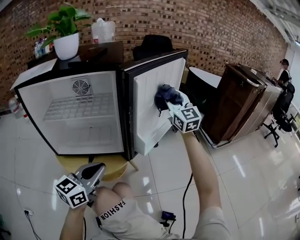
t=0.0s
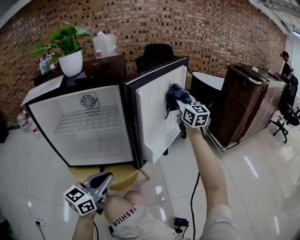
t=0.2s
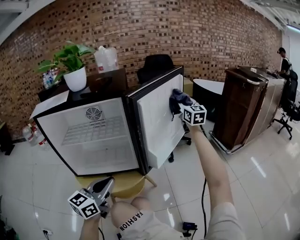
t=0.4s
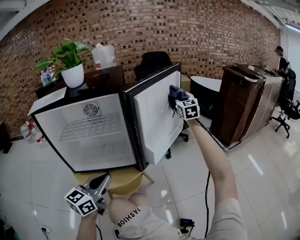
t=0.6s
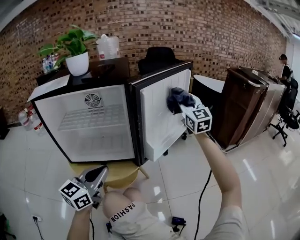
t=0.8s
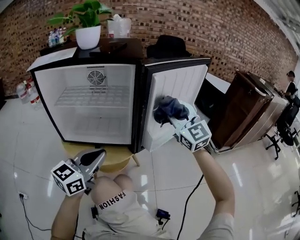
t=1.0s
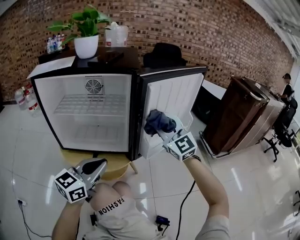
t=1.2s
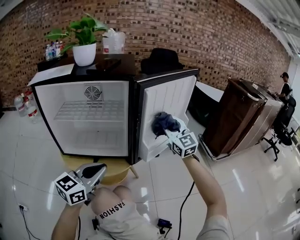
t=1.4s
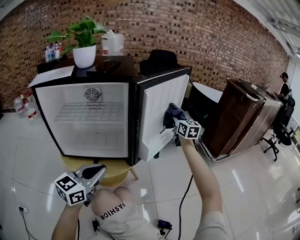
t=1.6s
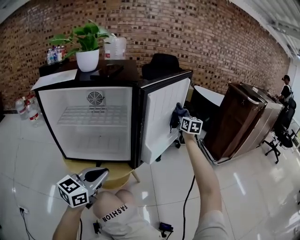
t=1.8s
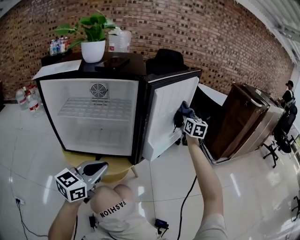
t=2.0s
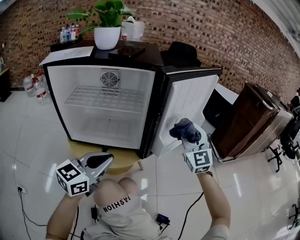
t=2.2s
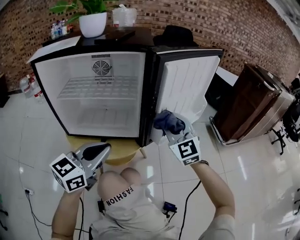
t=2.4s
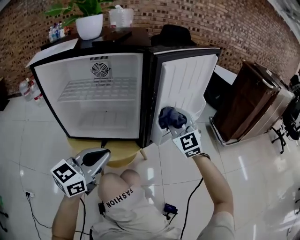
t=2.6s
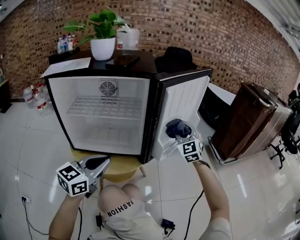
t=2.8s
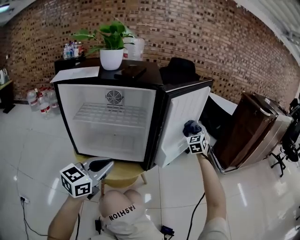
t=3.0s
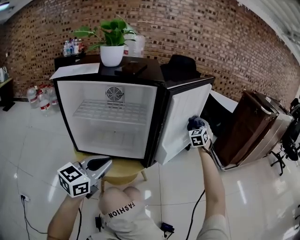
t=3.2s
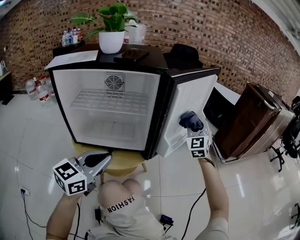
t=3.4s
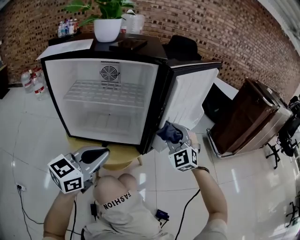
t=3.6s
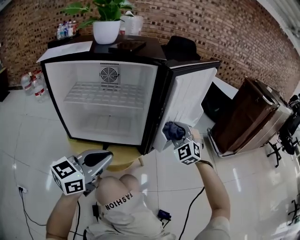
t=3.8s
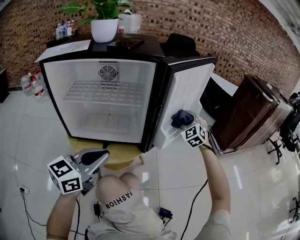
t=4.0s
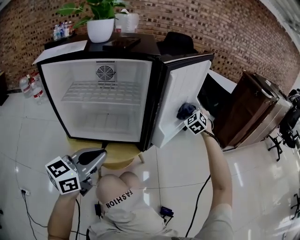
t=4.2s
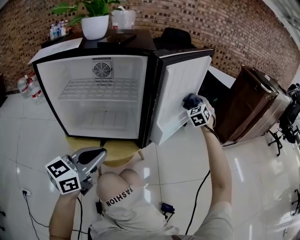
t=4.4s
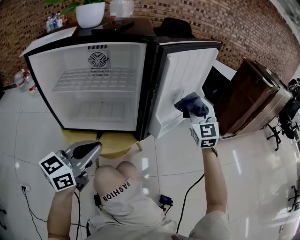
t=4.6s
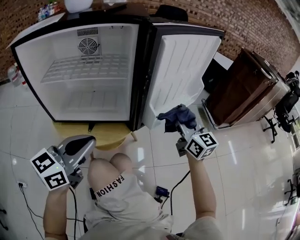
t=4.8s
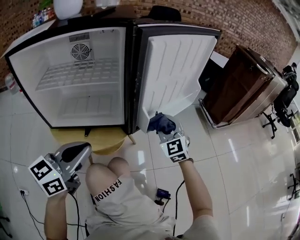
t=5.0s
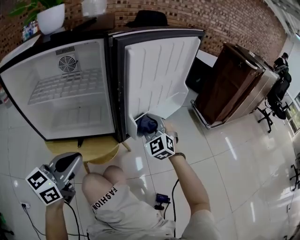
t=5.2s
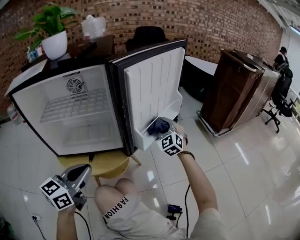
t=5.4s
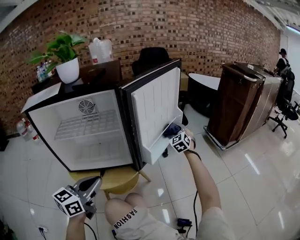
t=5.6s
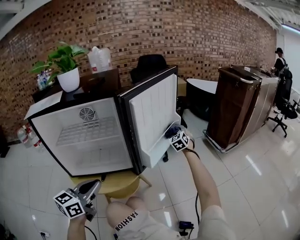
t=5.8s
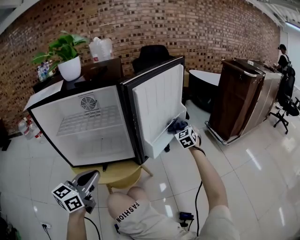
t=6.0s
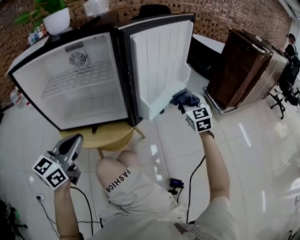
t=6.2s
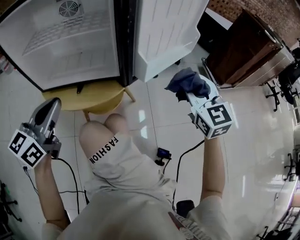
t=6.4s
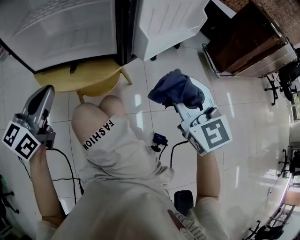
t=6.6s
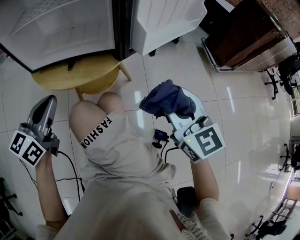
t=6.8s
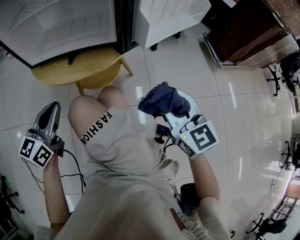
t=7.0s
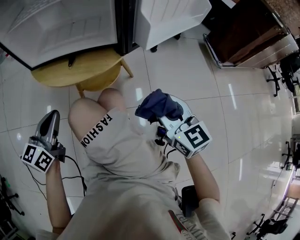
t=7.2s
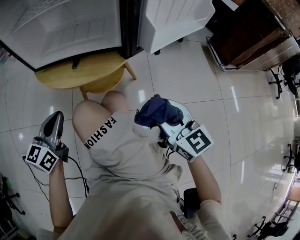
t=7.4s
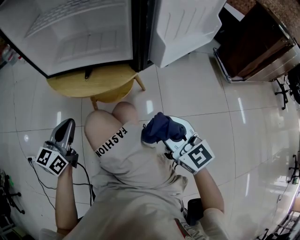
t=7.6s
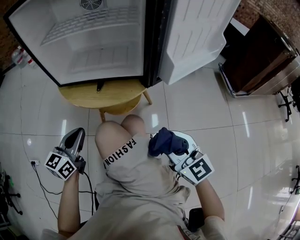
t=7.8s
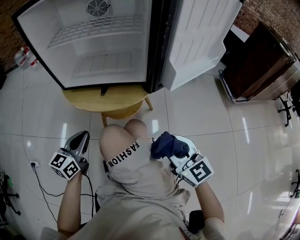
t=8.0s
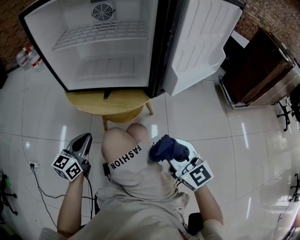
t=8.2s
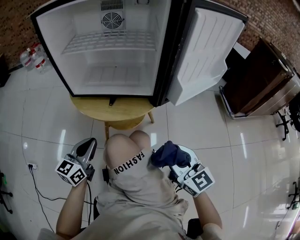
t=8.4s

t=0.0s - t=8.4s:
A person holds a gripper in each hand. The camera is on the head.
t=0.0s - t=1.4s: The right gripper goes forward and backward, approximately 20 cm each way, reversing 2 times.
t=1.4s - t=2.8s: The right gripper moves forward and backward over approximately 25 cm, changing direction 2 times, and changes its angle by approximately 30 degrees.
t=2.8s - t=4.2s: The right gripper goes forward and backward, about 25 cm each way, reversing 2 times, and swivels about 30 degrees.
t=4.2s - t=5.6s: The right gripper heads downward, covering about 5 cm, reaches about 20 cm backward, then returns, and turns by approximately 20 degrees.
t=5.6s - t=7.0s: The right gripper moves backward, about 40 cm, and turns by some 40 degrees; the left gripper goes about 15 cm downward, to the left and backward.
t=7.0s - t=8.4s: The right gripper goes about 5 cm to the left.

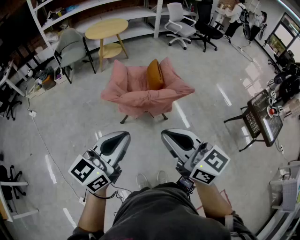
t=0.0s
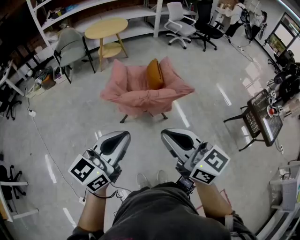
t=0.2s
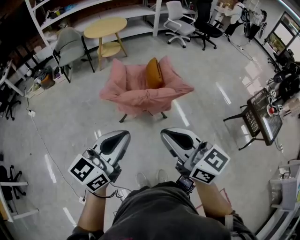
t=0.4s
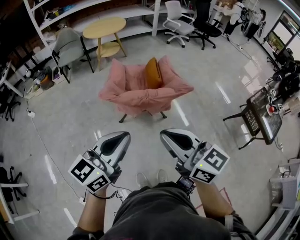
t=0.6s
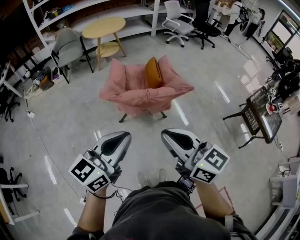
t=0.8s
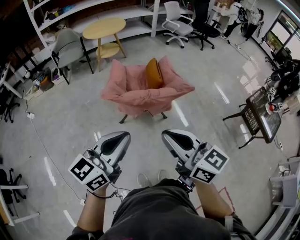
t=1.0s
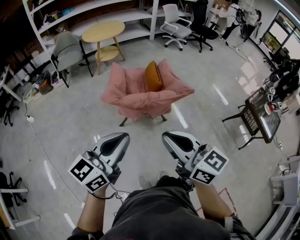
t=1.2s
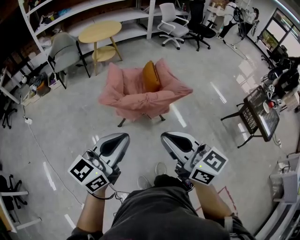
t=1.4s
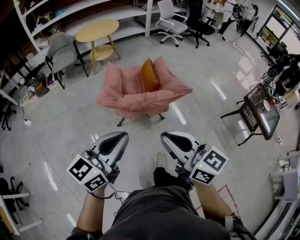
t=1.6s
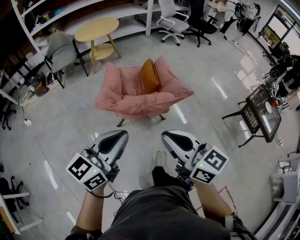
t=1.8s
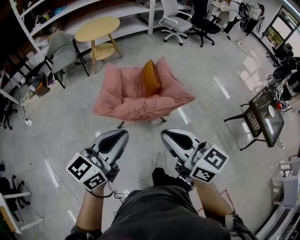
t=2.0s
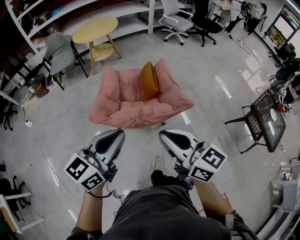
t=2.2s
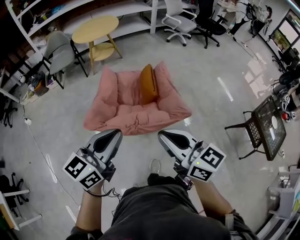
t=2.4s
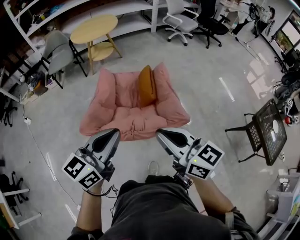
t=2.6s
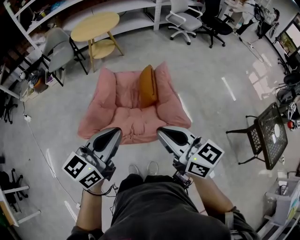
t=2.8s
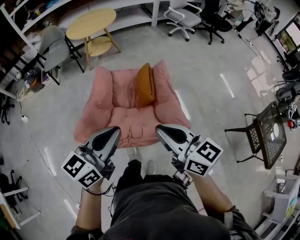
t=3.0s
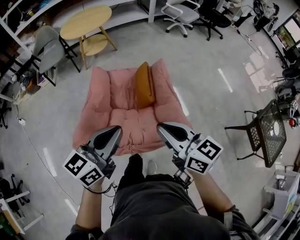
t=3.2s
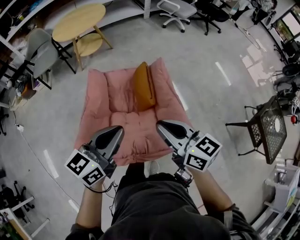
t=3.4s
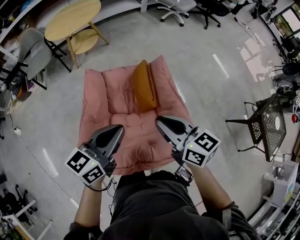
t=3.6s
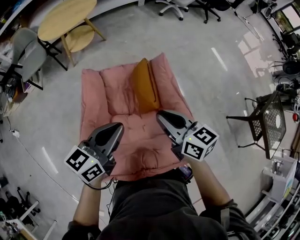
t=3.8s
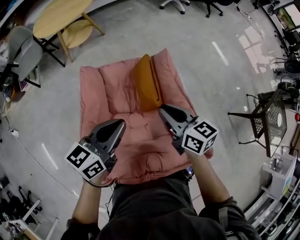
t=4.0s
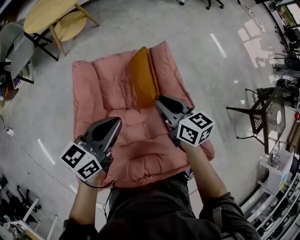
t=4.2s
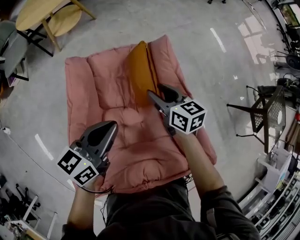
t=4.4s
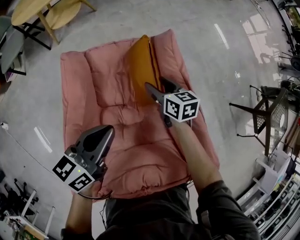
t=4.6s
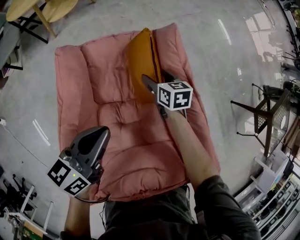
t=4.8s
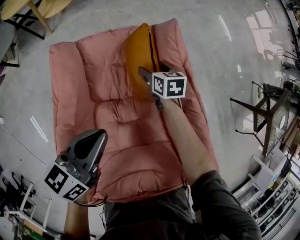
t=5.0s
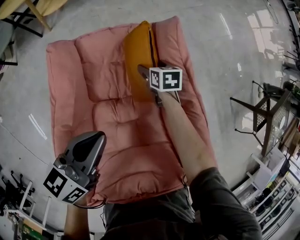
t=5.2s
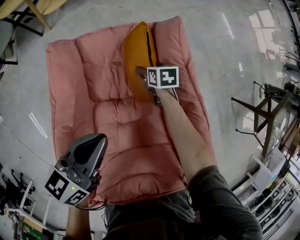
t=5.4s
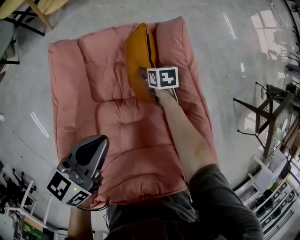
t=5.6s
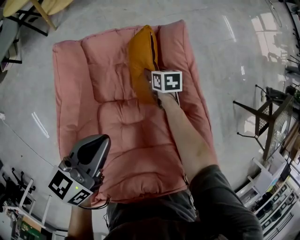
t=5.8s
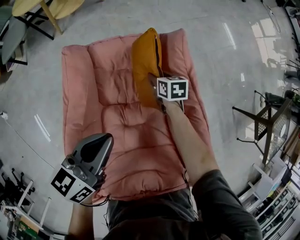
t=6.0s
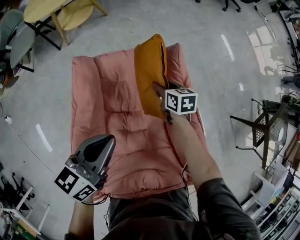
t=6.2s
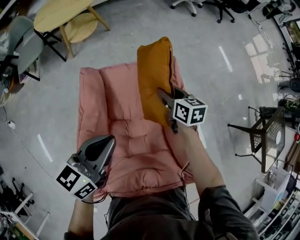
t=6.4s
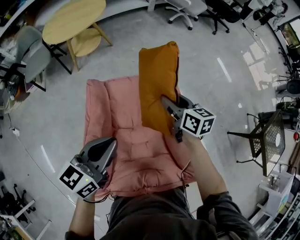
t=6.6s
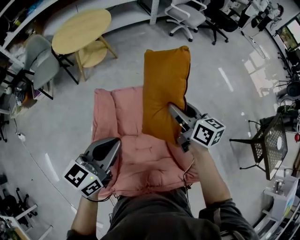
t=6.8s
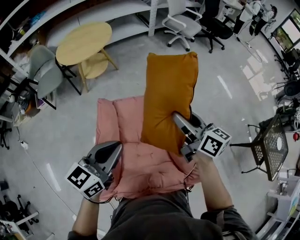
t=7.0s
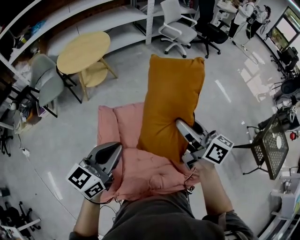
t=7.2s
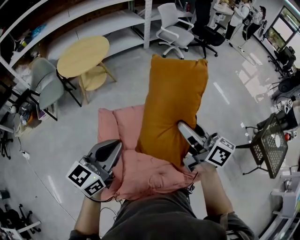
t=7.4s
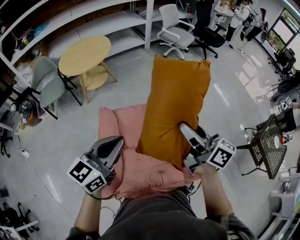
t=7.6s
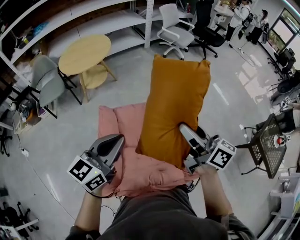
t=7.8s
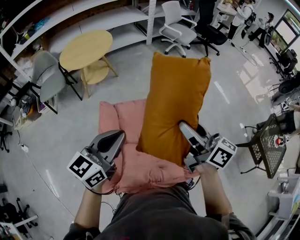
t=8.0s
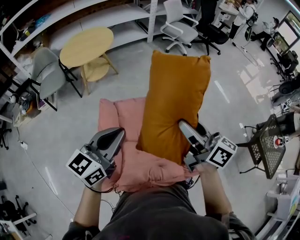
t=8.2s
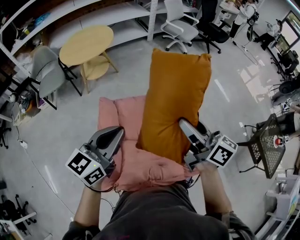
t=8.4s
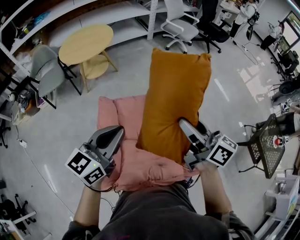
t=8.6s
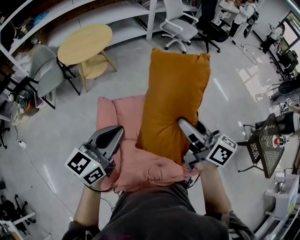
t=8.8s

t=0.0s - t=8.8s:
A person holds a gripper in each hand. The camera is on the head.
t=0.0s - t=1.4s: The grippers stay close to where they were, moving slightly.
t=1.4s - t=3.0s: Both grippers travel together forward, approximately 35 cm.
t=3.0s - t=4.4s: Both grippers move forward and downward, approximately 40 cm. The right gripper swivels about 30 degrees, and opens its fingers. The left gripper changes its angle by some 20 degrees.
t=4.4s - t=5.8s: The right gripper is displaced downward by approximately 25 cm, rotates approximately 30 degrees, and opens and closes again, while the left gripper is displaced downward by some 5 cm.
t=5.8s - t=7.4s: The left gripper moves upward, roughly 30 cm, and changes its angle by some 30 degrees. The right gripper travels upward by approximately 60 cm, and tilts its fingers about 60 degrees upward.
t=7.4s - t=8.8s: There are only small adjustments of the grippers.

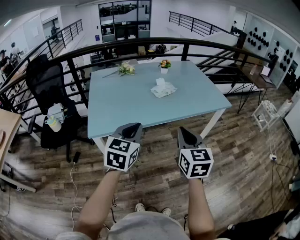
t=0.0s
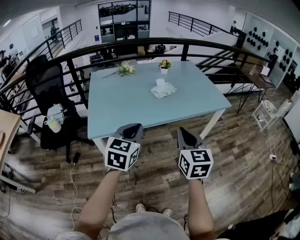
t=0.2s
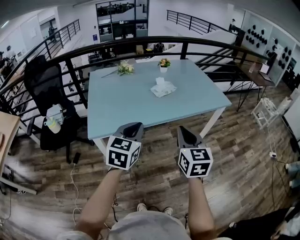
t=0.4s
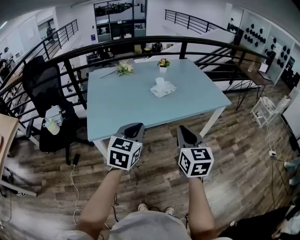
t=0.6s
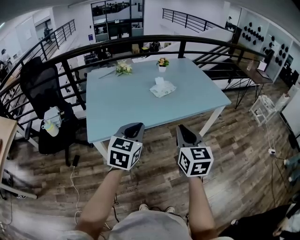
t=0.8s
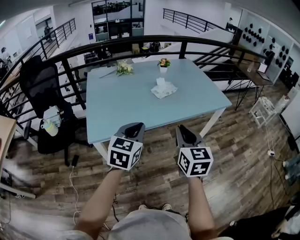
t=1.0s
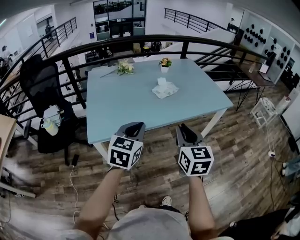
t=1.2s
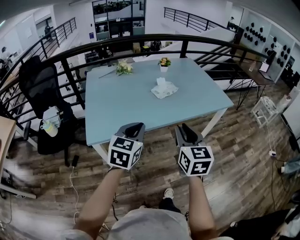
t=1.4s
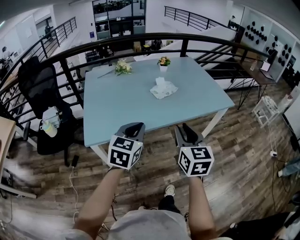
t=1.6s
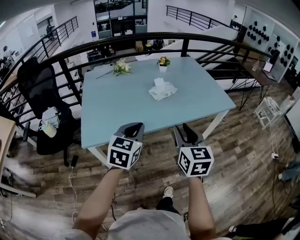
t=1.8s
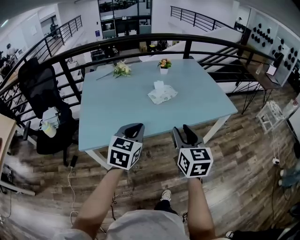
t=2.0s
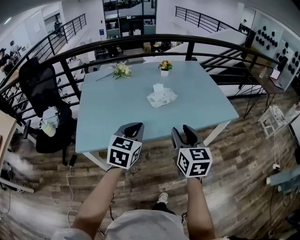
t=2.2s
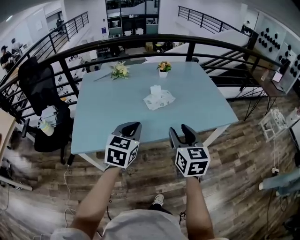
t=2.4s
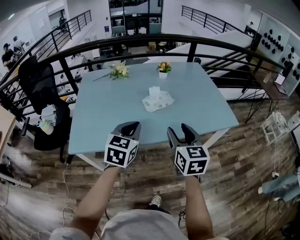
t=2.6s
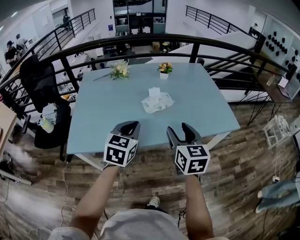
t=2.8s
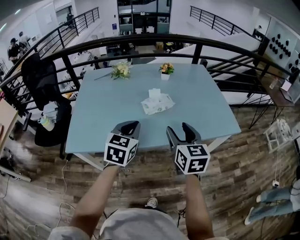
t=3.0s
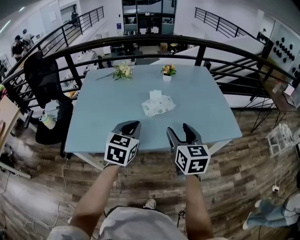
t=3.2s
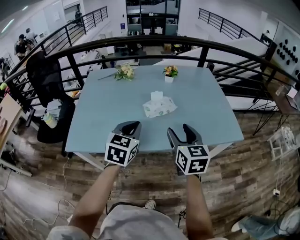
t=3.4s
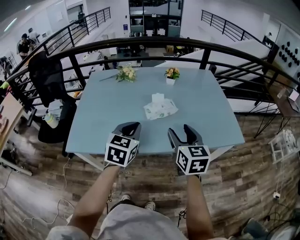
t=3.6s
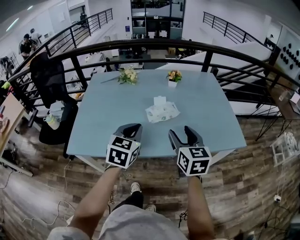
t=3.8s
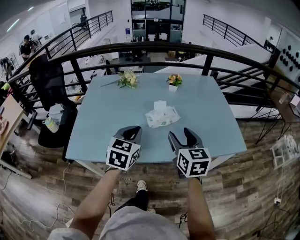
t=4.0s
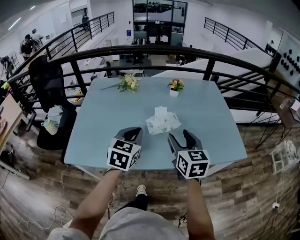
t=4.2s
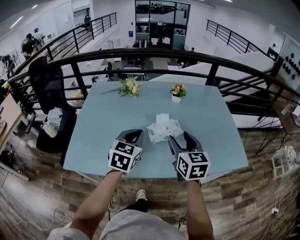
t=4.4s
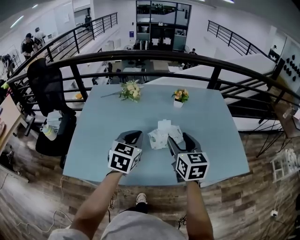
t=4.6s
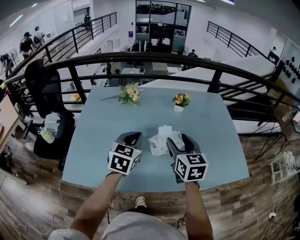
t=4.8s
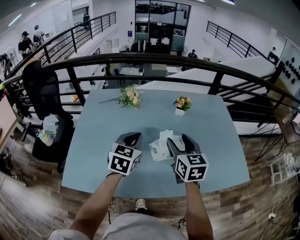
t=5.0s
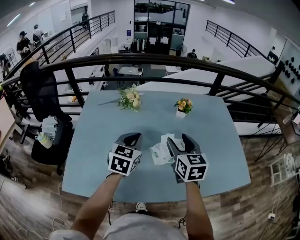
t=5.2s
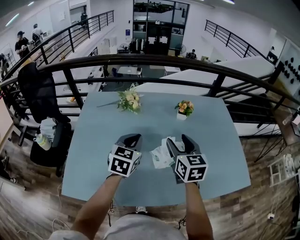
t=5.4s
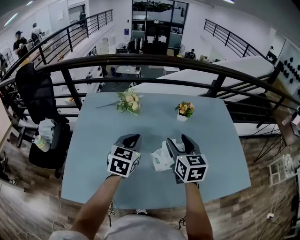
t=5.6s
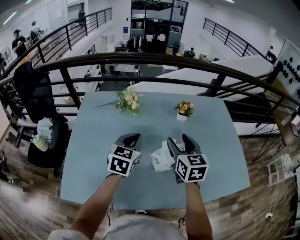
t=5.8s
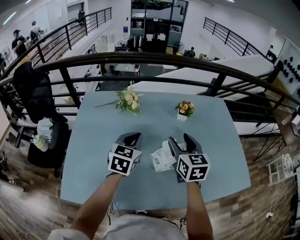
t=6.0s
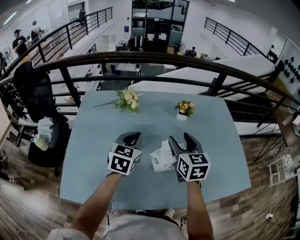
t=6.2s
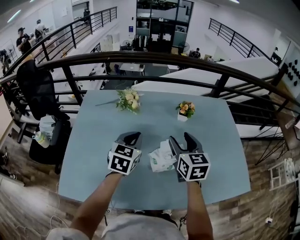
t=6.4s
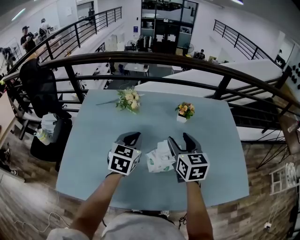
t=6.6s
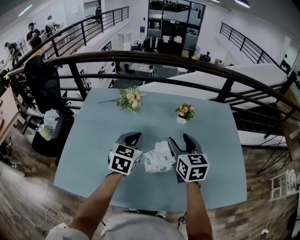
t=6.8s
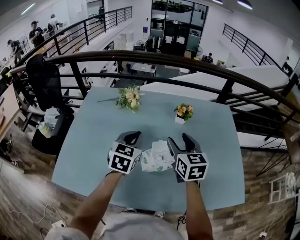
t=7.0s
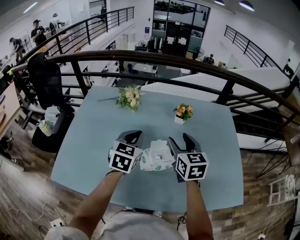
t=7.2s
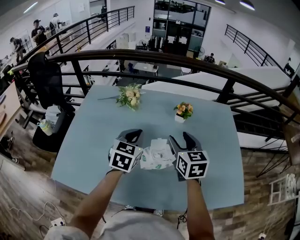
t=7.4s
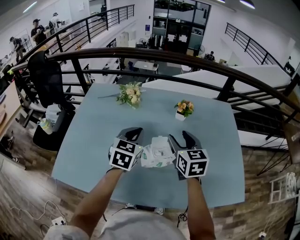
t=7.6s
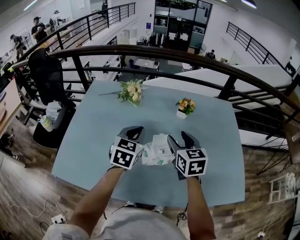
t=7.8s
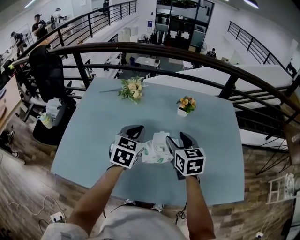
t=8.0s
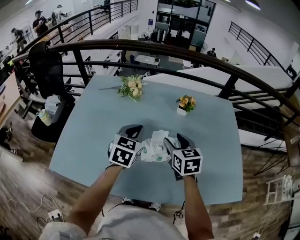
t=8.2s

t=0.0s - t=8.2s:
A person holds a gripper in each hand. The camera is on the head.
t=0.0s - t=1.6s: Both grippers travel together forward, roughly 5 cm.
t=1.6s - t=3.2s: Both grippers travel together forward and to the right, approximately 20 cm. The right gripper opens up.
t=3.2s - t=5.0s: The grippers both shift forward by about 20 cm.
t=5.0s - t=6.6s: Both grippers move forward, some 10 cm.
t=6.6s - t=8.2s: The right gripper heads downward, covering about 5 cm.
